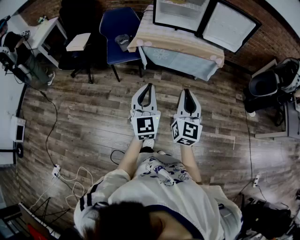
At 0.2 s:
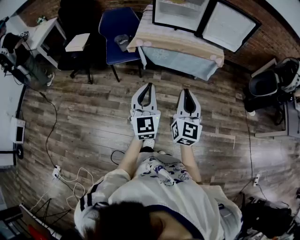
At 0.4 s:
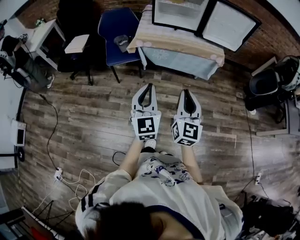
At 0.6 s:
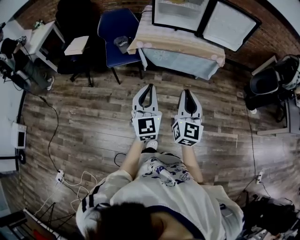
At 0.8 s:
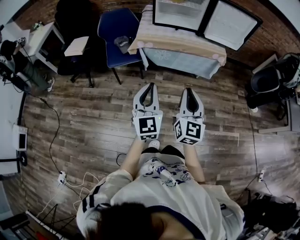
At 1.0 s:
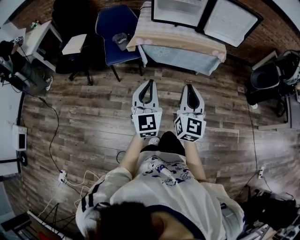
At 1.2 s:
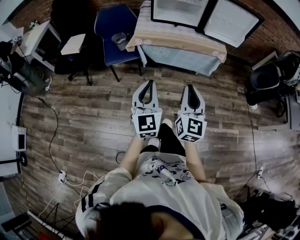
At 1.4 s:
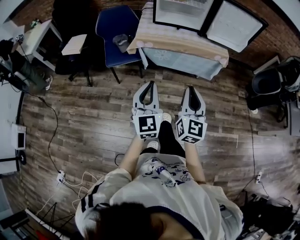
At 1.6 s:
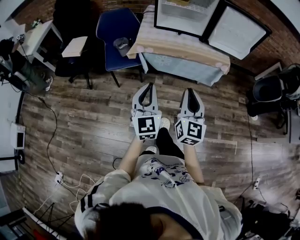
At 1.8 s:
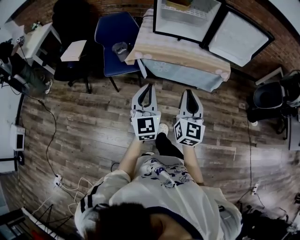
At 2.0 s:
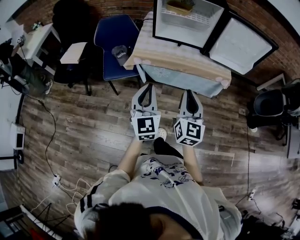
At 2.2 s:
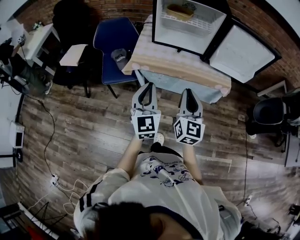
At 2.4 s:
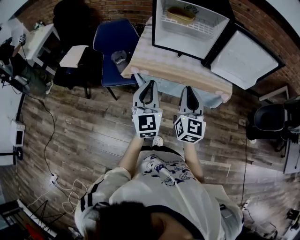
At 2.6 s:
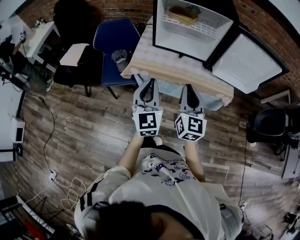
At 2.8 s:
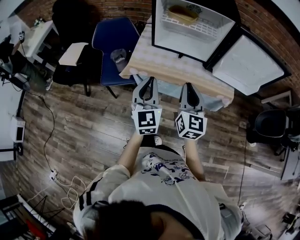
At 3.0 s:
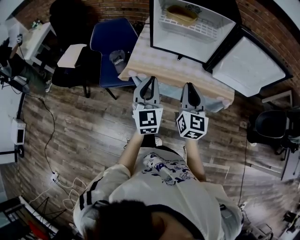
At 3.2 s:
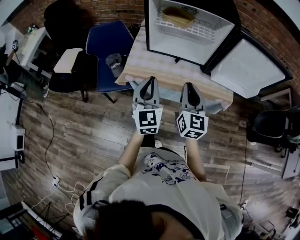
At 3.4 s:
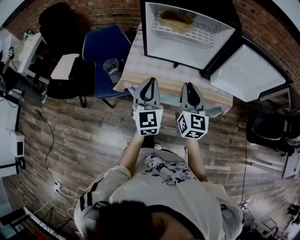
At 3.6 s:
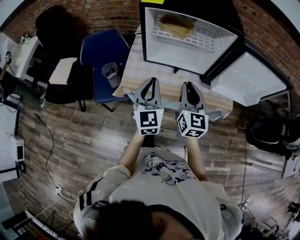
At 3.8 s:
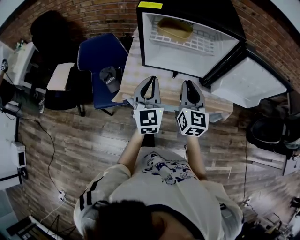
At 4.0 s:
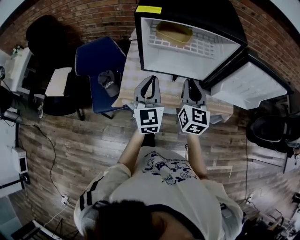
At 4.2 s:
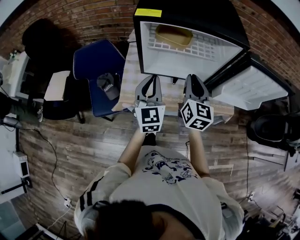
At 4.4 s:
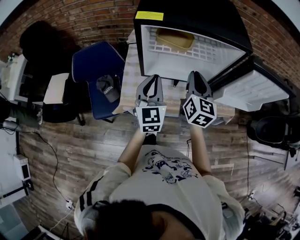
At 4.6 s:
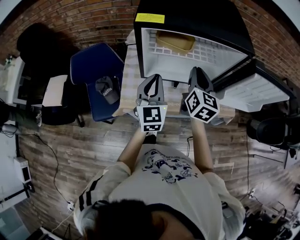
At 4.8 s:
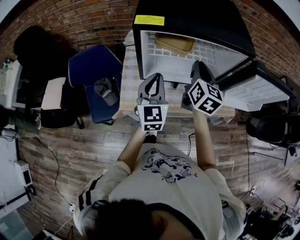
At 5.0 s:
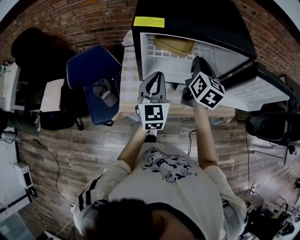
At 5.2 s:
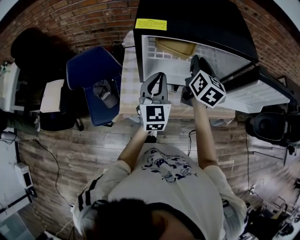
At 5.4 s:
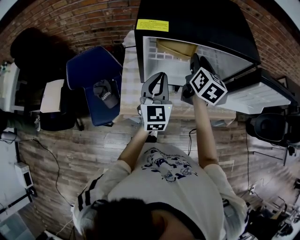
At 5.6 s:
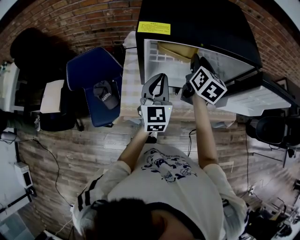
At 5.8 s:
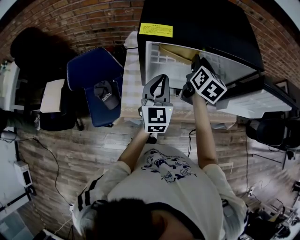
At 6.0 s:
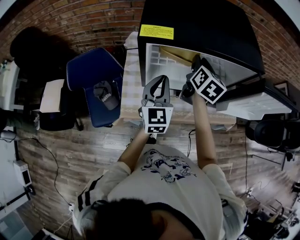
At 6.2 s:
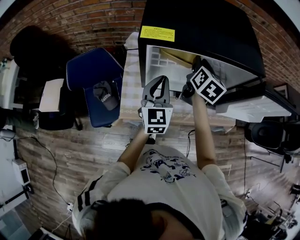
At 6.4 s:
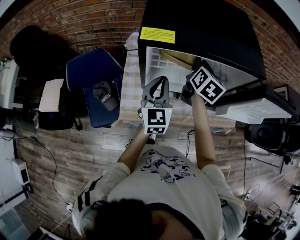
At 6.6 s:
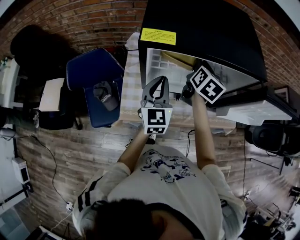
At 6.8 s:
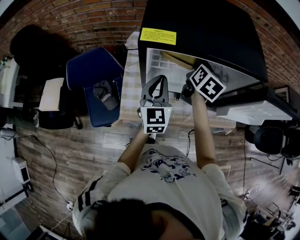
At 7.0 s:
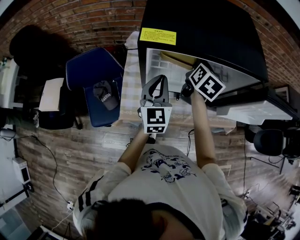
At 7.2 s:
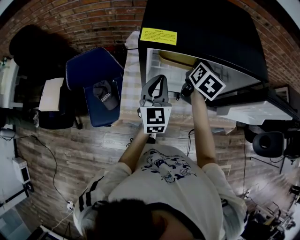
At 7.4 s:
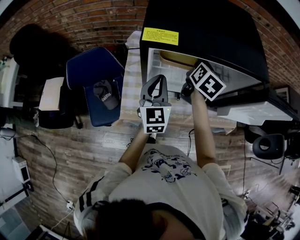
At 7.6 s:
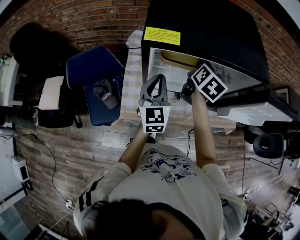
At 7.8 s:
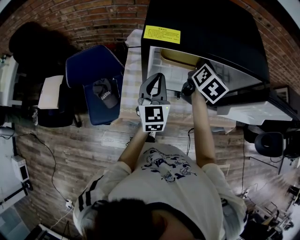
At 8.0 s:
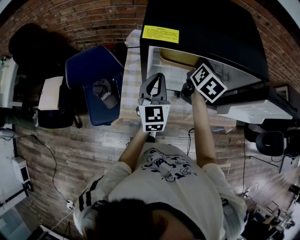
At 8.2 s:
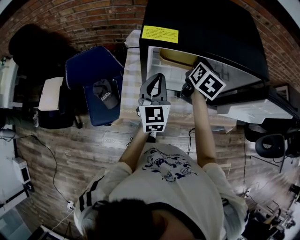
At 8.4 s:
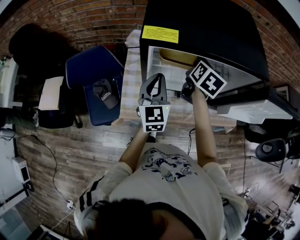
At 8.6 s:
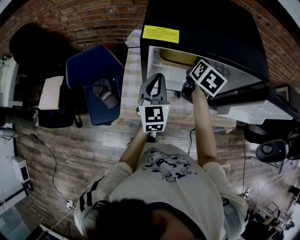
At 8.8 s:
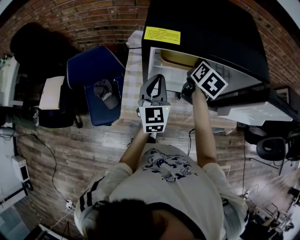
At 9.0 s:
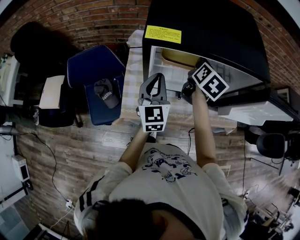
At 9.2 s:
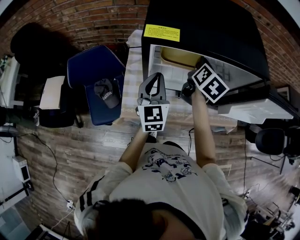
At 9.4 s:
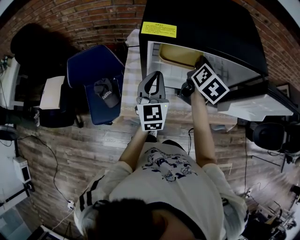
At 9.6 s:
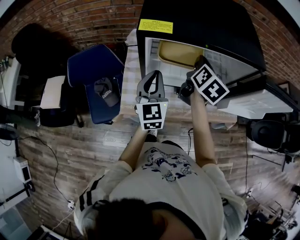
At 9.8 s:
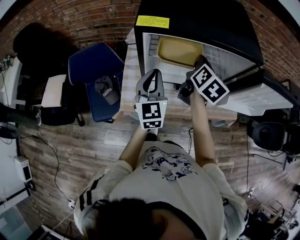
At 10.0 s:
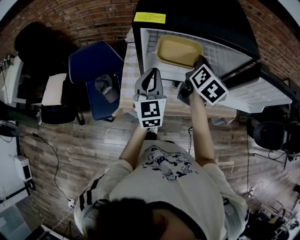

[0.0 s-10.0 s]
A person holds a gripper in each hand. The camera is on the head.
0.0 to 1.4 s: Both grippers travel together forward, roughly 10 cm.
1.4 to 2.8 s: Both grippers move forward, about 35 cm.
2.8 to 4.2 s: The grippers both shift forward by approximately 25 cm.
4.2 to 5.8 s: The right gripper travels forward by roughly 20 cm, changes its angle by roughly 20 degrees, and opens up. The left gripper heads forward, covering some 10 cm.
5.8 to 7.2 s: The grippers stay close to where they were, moving slightly.
7.2 to 8.6 s: Neither gripper changes place.
8.6 to 10.0 s: The right gripper shifts roughly 10 cm backward, while the left gripper shifts some 5 cm backward.

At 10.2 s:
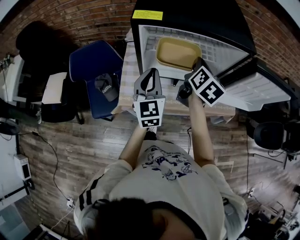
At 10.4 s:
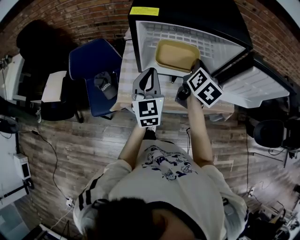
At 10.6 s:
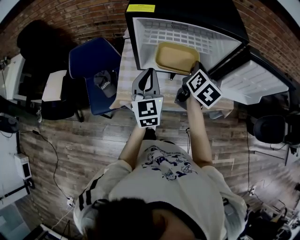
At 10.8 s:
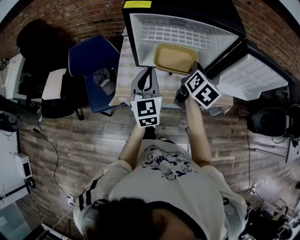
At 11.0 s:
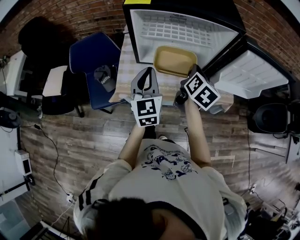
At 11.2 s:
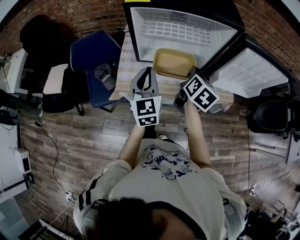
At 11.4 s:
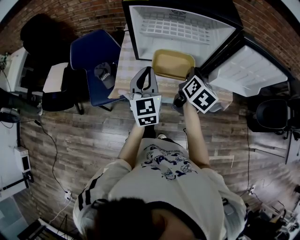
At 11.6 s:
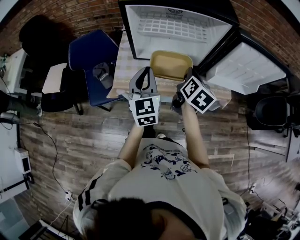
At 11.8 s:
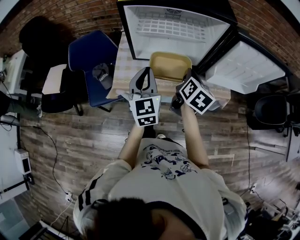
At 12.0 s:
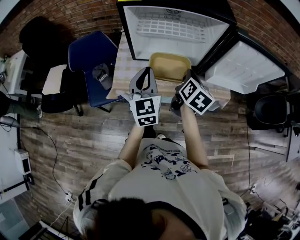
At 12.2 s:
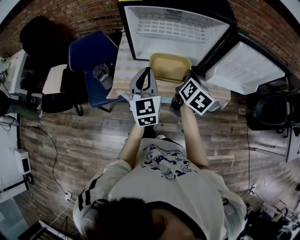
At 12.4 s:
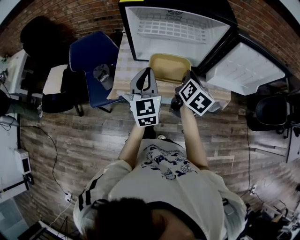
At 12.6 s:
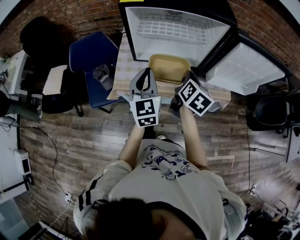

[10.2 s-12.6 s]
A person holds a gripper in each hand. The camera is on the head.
10.2 to 11.4 s: The right gripper travels backward and downward by approximately 15 cm. The left gripper is displaced backward by roughly 10 cm.
11.4 to 12.6 s: There are only small adjustments of the grippers.

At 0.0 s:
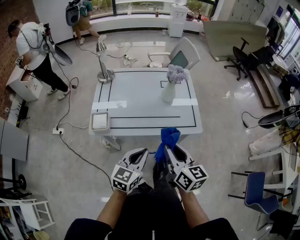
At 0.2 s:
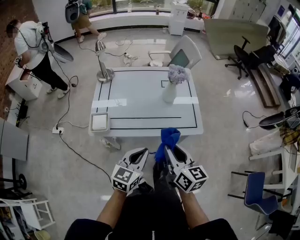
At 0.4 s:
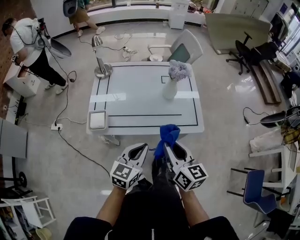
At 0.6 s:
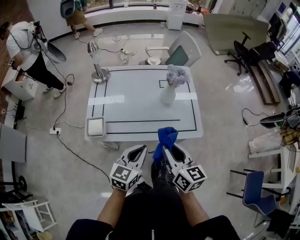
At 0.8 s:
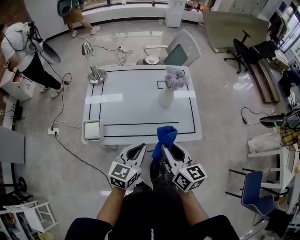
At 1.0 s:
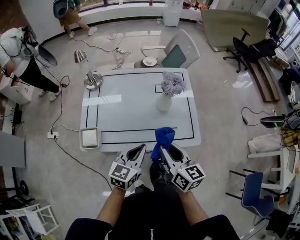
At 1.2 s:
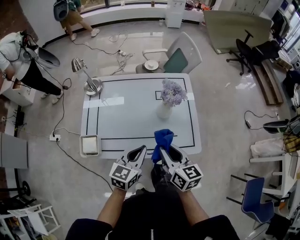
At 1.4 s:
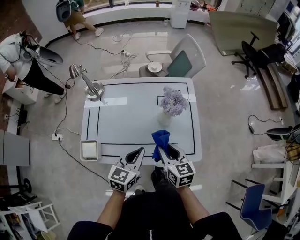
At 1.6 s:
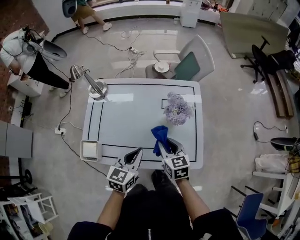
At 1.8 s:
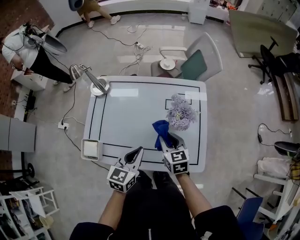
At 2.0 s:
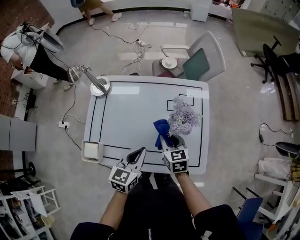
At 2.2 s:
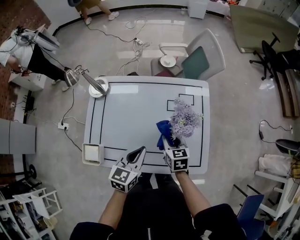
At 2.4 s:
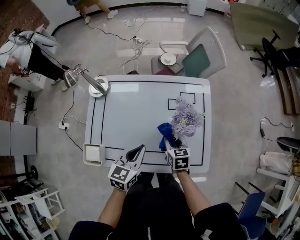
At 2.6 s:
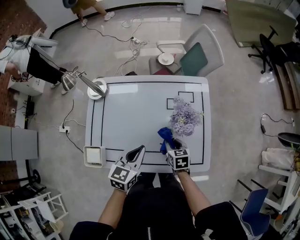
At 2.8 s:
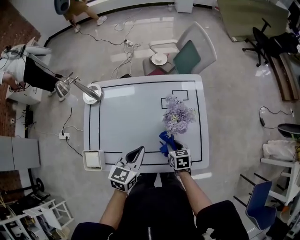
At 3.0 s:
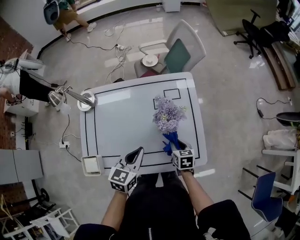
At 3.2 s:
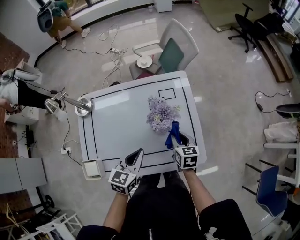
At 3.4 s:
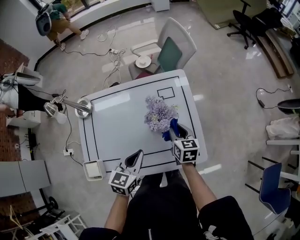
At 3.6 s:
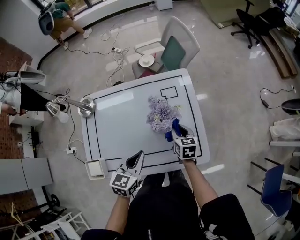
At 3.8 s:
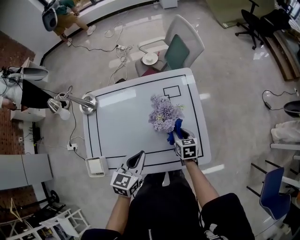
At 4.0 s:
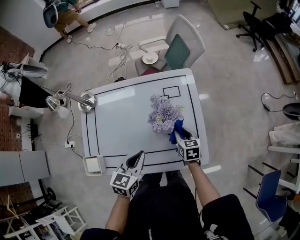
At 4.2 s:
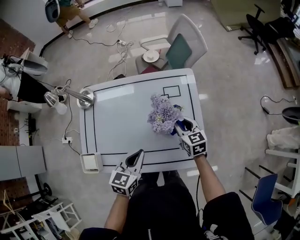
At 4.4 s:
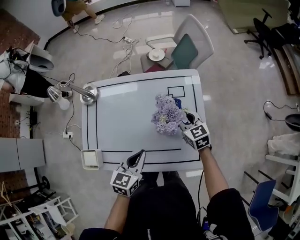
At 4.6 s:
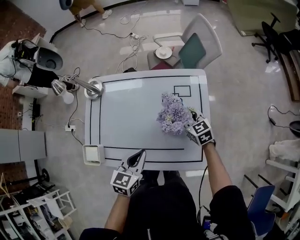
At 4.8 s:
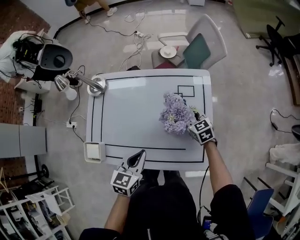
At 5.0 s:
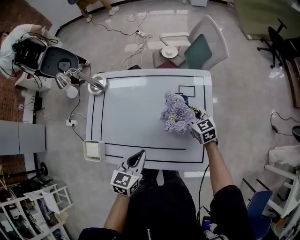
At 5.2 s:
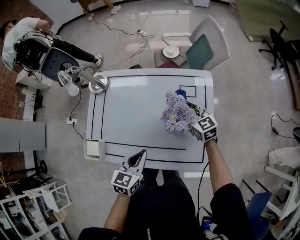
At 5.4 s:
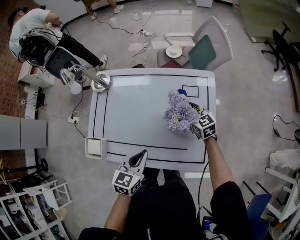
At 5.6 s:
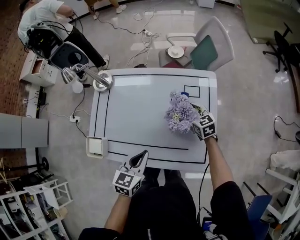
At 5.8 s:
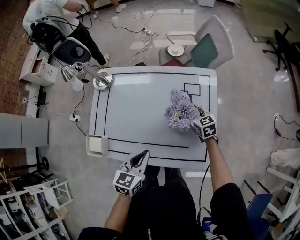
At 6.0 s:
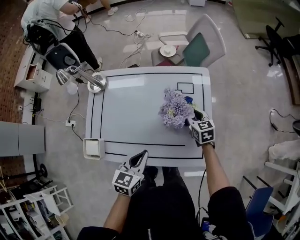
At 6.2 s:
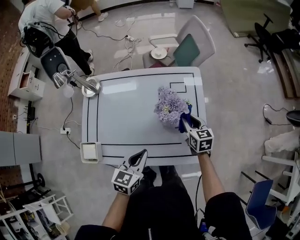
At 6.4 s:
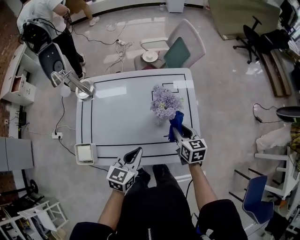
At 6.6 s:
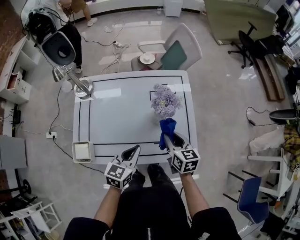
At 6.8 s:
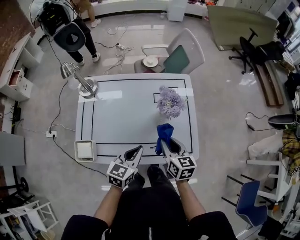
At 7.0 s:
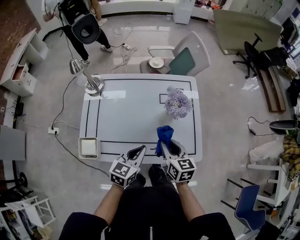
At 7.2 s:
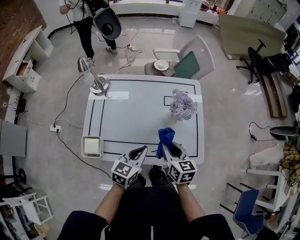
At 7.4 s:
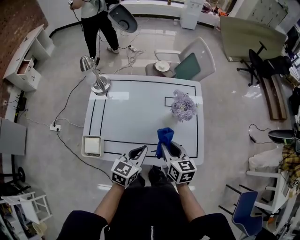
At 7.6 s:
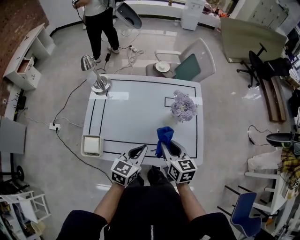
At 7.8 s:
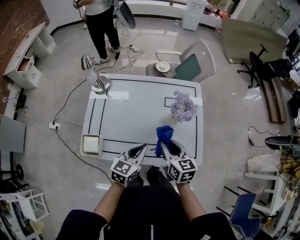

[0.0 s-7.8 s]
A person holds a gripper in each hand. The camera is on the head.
0.0 to 1.6 s: The left gripper goes about 25 cm forward, while the right gripper goes roughly 35 cm forward and downward, and turns by roughly 30 degrees.
1.6 to 3.2 s: The right gripper shifts approximately 10 cm to the right, downward and forward, and changes its angle by approximately 20 degrees. Meanwhile the left gripper moves forward, roughly 5 cm.
3.2 to 4.6 s: The right gripper heads forward, covering approximately 10 cm, and swivels roughly 40 degrees.
4.6 to 6.2 s: The right gripper heads backward, covering approximately 5 cm, and changes its angle by about 20 degrees.
6.2 to 7.8 s: The left gripper changes place by some 5 cm, while the right gripper goes about 25 cm backward, to the left and upward.

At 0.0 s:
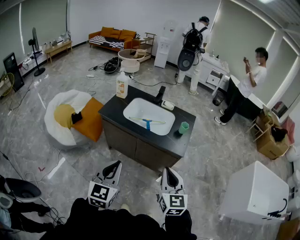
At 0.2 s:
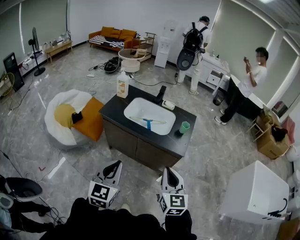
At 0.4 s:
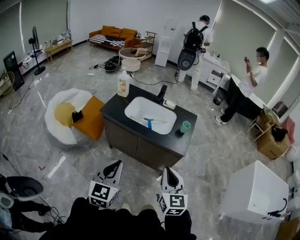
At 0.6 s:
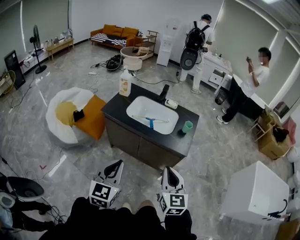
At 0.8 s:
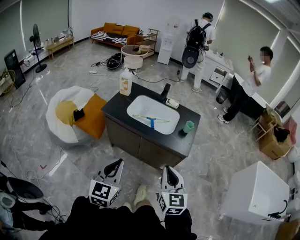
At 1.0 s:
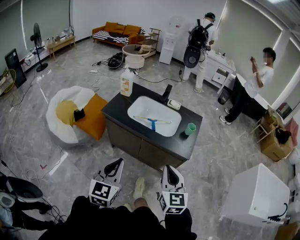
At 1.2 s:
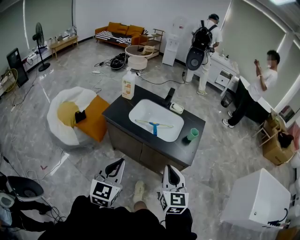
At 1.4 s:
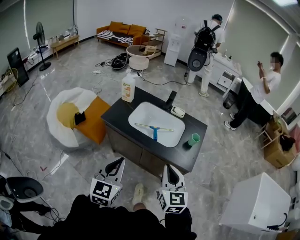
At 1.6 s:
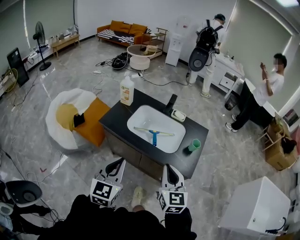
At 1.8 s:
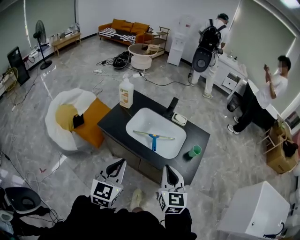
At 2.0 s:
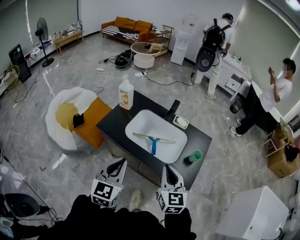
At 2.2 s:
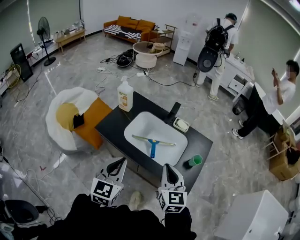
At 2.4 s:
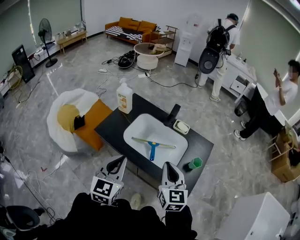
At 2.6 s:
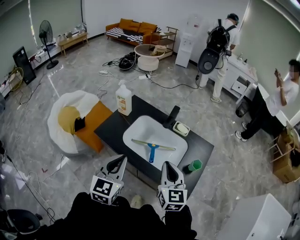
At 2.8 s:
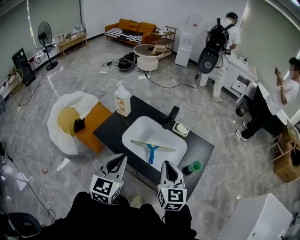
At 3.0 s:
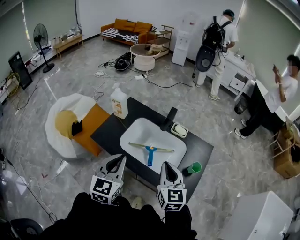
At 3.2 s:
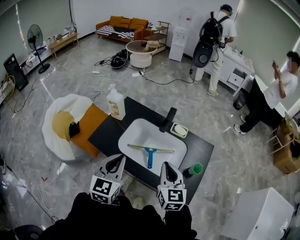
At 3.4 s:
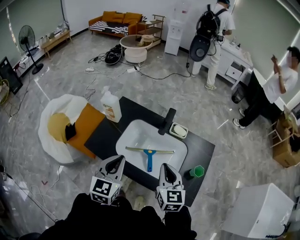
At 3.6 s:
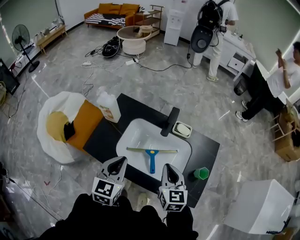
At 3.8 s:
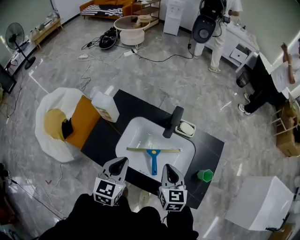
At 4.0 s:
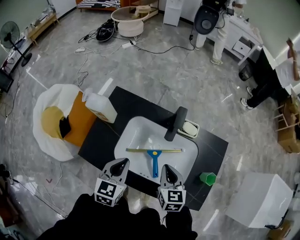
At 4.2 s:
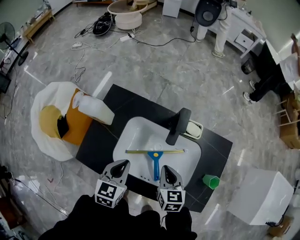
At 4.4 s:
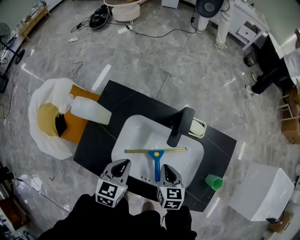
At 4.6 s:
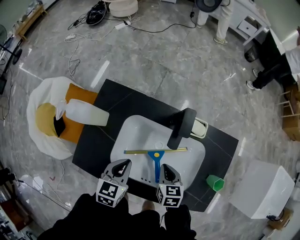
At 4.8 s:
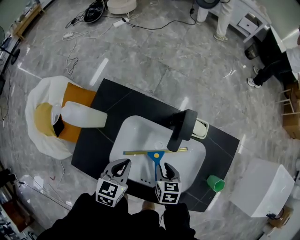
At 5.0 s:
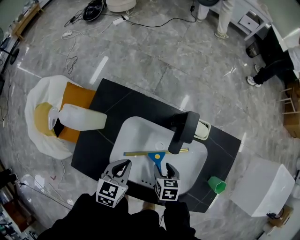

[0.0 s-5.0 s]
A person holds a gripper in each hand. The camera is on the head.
0.0 to 1.6 s: Both grippers move forward, some 20 cm.
1.6 to 3.4 s: The grippers both shift forward by some 30 cm.
3.4 to 5.0 s: Both grippers move downward and forward, about 35 cm. The right gripper tilts its fingers some 40 degrees downward, and opens up. The left gripper rotates roughly 30 degrees.
